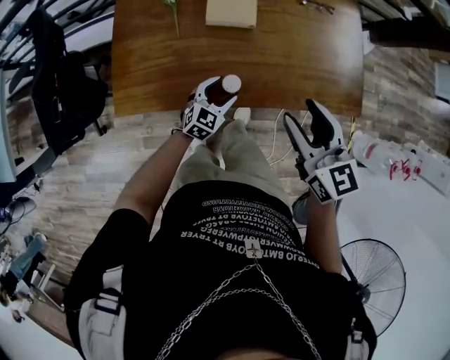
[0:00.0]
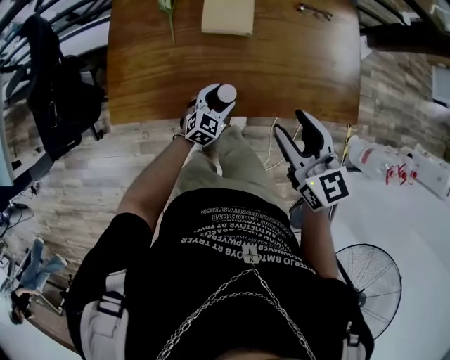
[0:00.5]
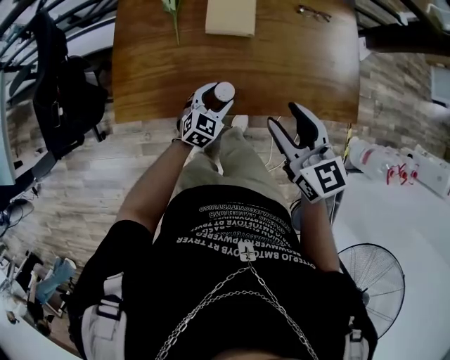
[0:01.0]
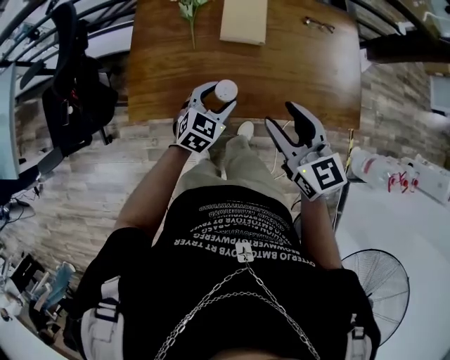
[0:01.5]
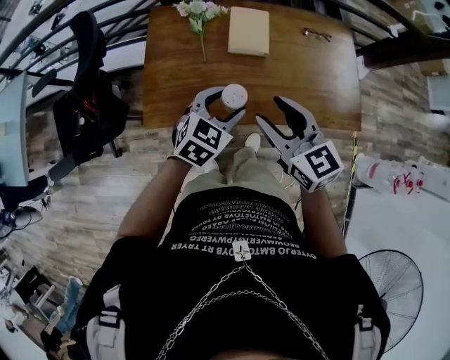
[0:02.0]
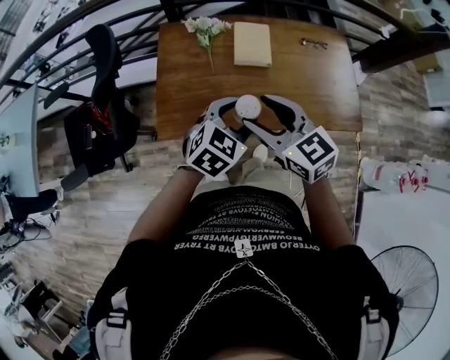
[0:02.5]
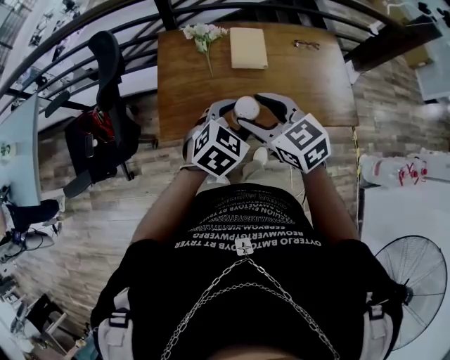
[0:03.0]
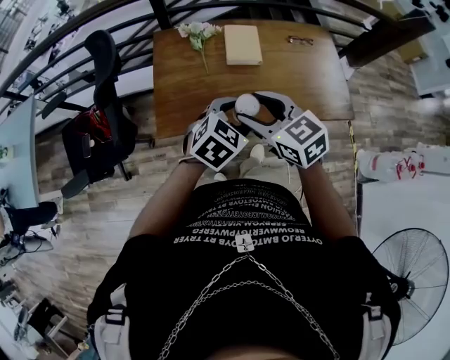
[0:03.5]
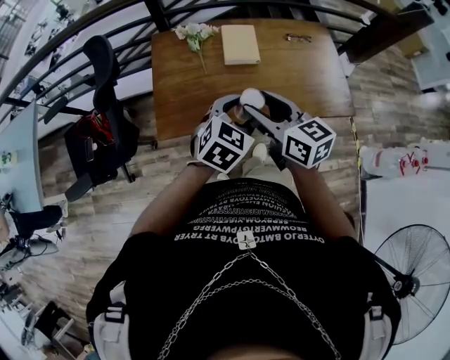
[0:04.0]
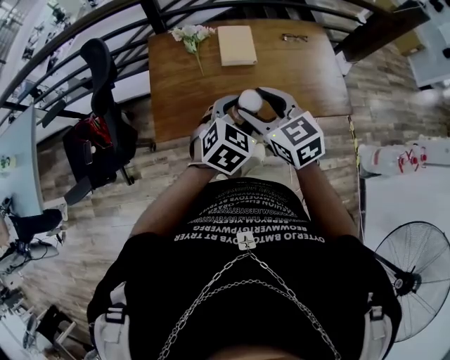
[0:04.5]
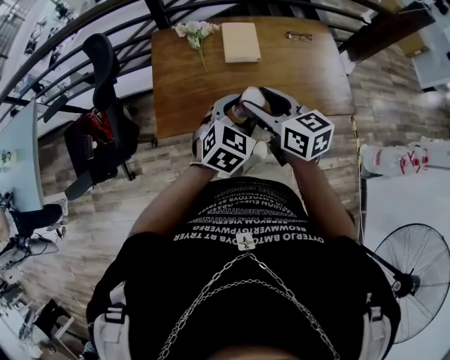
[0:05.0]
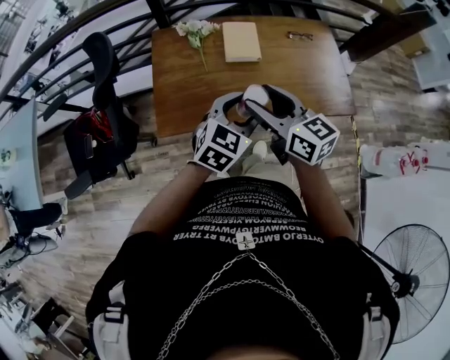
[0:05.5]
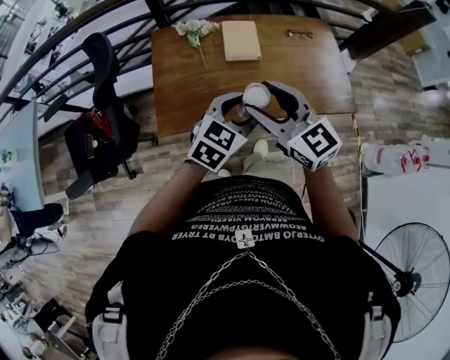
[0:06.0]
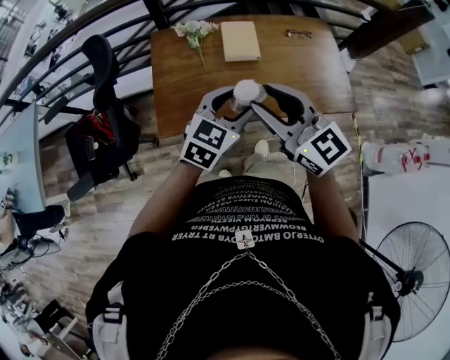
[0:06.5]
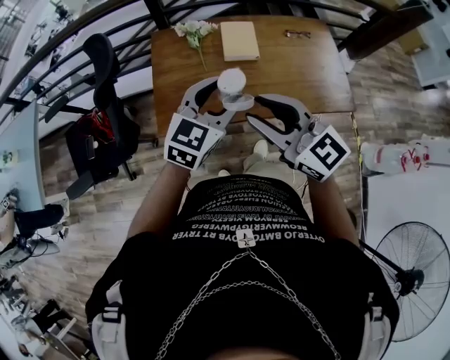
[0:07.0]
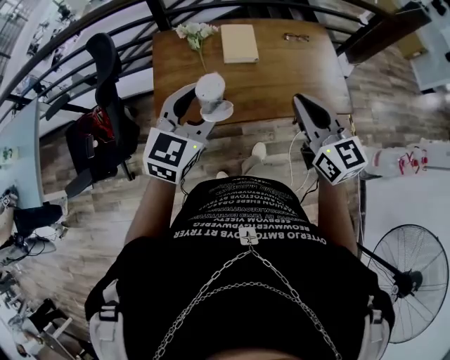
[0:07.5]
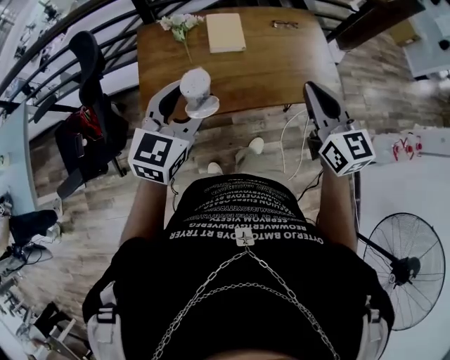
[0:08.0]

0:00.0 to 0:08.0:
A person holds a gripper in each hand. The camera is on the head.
0:00.0 to 0:02.0: The left gripper shifts roughly 20 cm upward. Meanwhile the right gripper goes roughly 15 cm to the left.
0:02.0 to 0:04.0: The left gripper moves upward and backward, roughly 10 cm. The right gripper changes place by some 5 cm.
0:04.0 to 0:06.0: The right gripper changes its angle by some 30 degrees.
0:06.0 to 0:08.0: The right gripper heads to the right, covering roughly 15 cm, rotates about 20 degrees, and closes; the left gripper shifts some 10 cm to the left and upward.

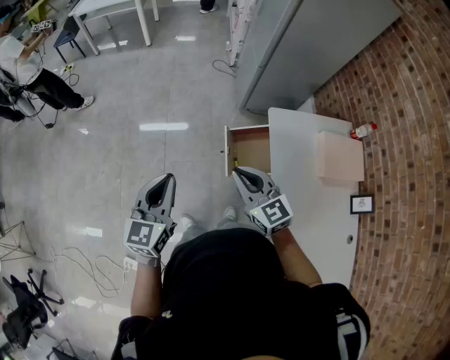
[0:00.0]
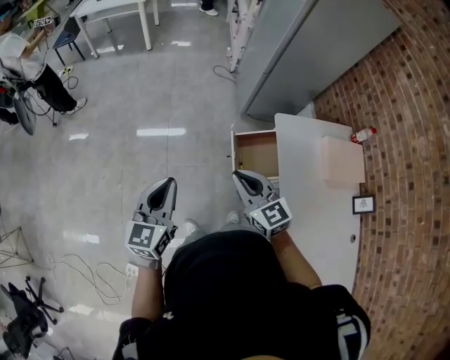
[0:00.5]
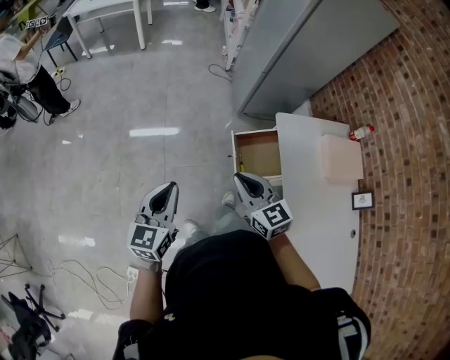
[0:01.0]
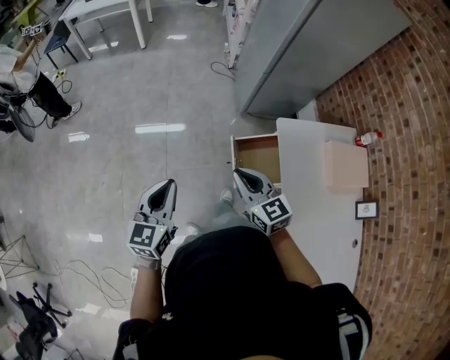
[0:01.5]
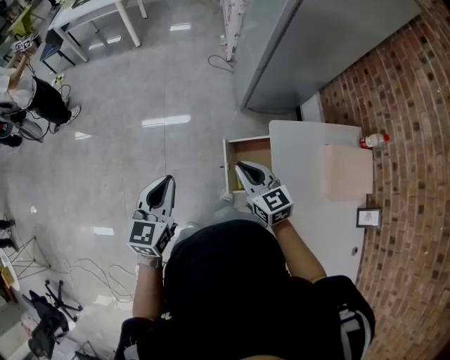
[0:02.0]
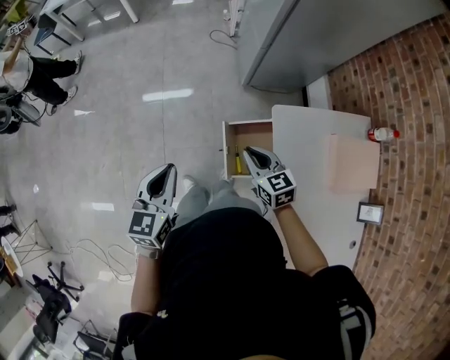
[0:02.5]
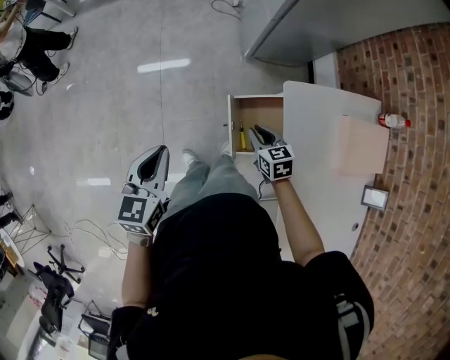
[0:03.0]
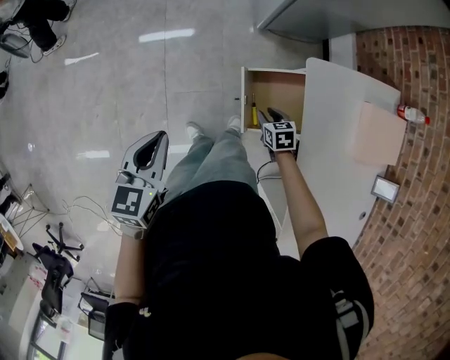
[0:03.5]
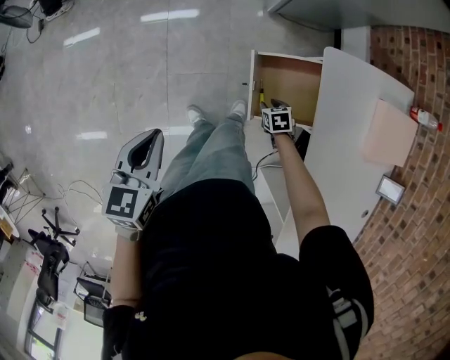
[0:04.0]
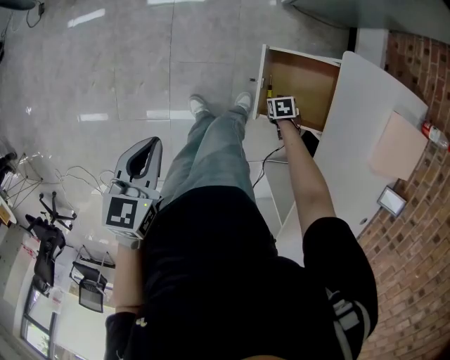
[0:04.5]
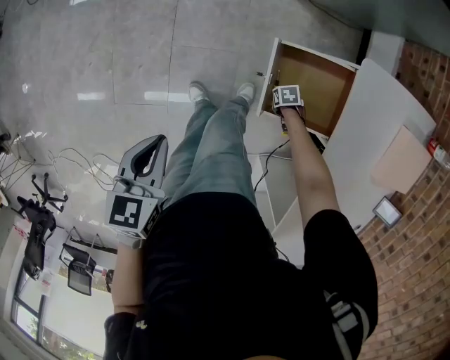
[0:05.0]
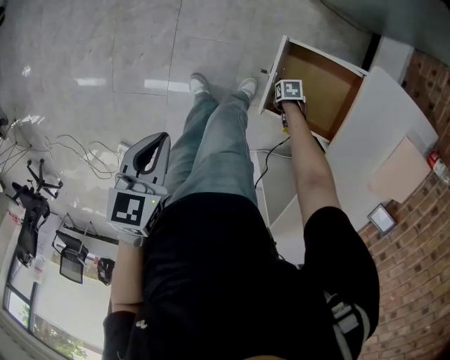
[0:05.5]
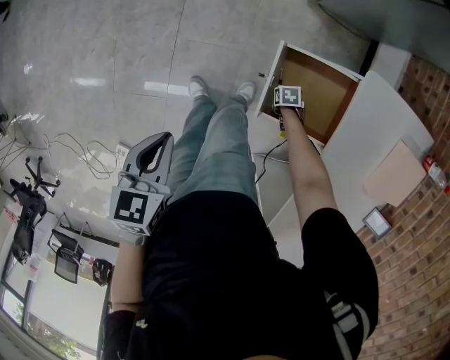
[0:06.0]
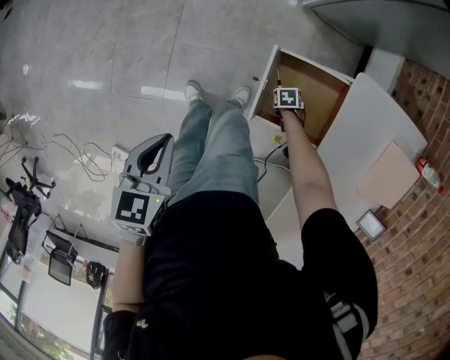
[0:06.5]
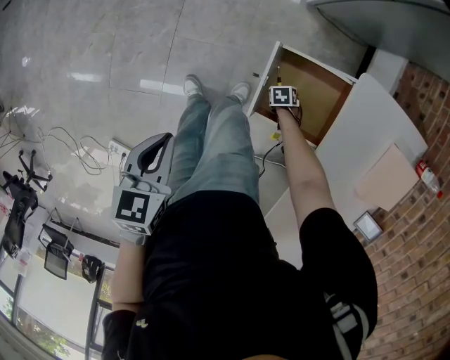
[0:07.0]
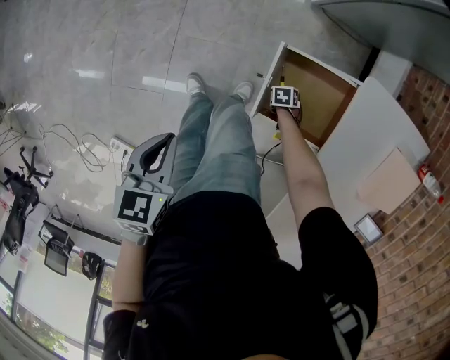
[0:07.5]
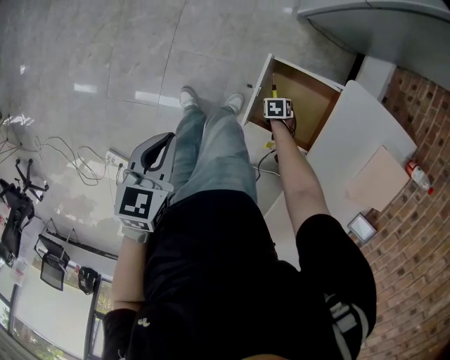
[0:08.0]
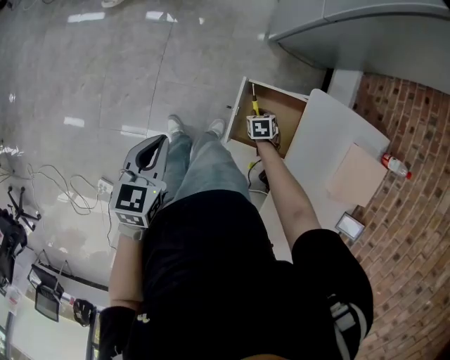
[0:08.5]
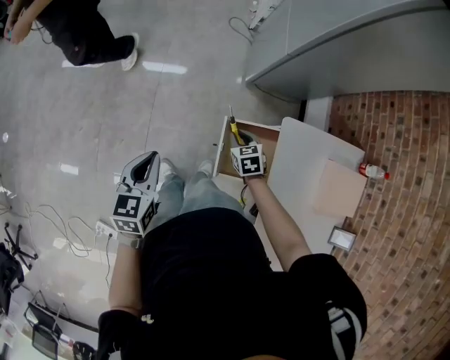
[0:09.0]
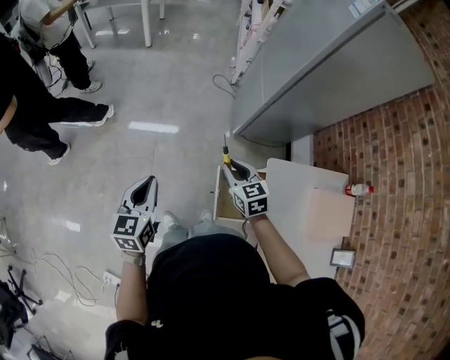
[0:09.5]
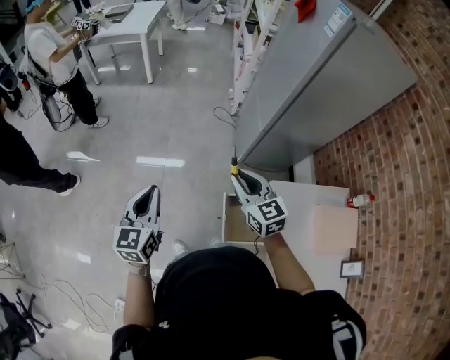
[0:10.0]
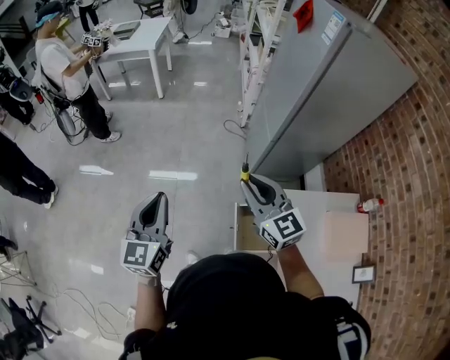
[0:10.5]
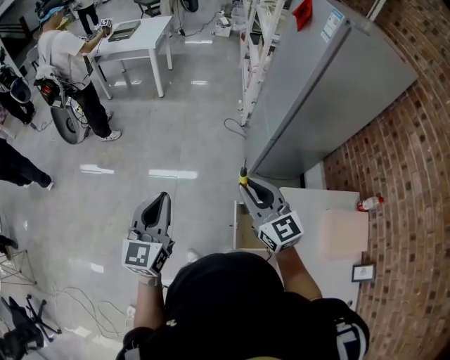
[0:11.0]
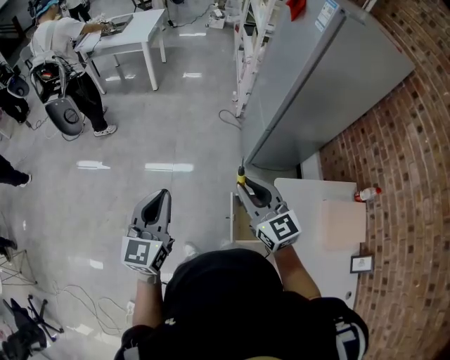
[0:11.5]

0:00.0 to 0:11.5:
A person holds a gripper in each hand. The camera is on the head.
0:00.0 to 0:02.0: The left gripper is displaced forward by some 15 cm. The right gripper goes about 20 cm forward and downward.
0:02.0 to 0:04.0: The left gripper goes some 15 cm downward and to the left, and swivels some 20 degrees, while the right gripper goes some 40 cm downward, tilts its fingers some 50 degrees downward, and opens its fingers.
0:04.0 to 0:06.0: The left gripper travels downward by roughly 10 cm, while the right gripper moves downward, about 15 cm, and turns by roughly 20 degrees.
0:06.0 to 0:07.5: There are only small adjustments of the grippers.
0:07.5 to 0:09.5: The left gripper goes approximately 20 cm upward, and tilts its fingers roughly 30 degrees upward. The right gripper travels upward by about 60 cm, and points its fingers approximately 50 degrees further upward.
0:09.5 to 0:11.5: The grippers both shift upward by about 20 cm. The left gripper turns by about 20 degrees. Meanwhile the right gripper rotates about 30 degrees.

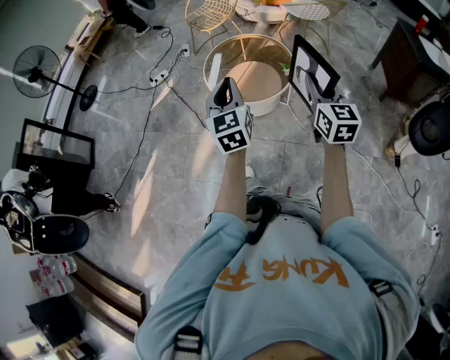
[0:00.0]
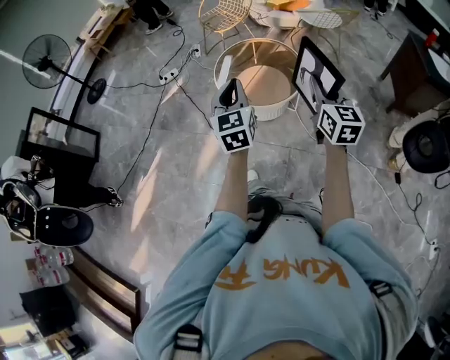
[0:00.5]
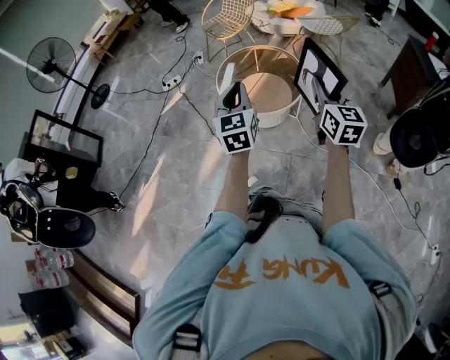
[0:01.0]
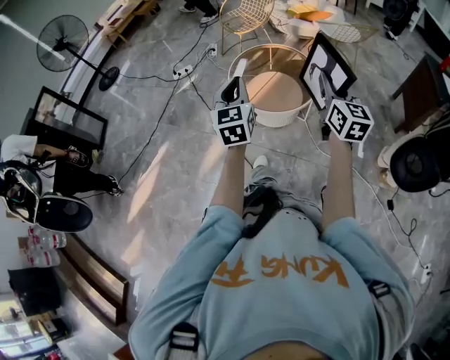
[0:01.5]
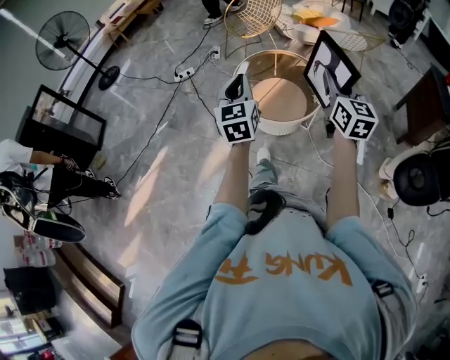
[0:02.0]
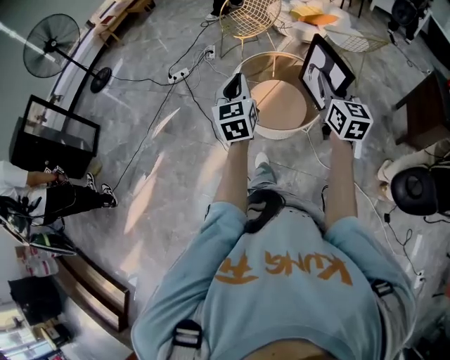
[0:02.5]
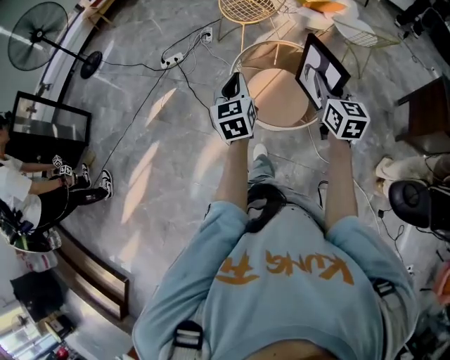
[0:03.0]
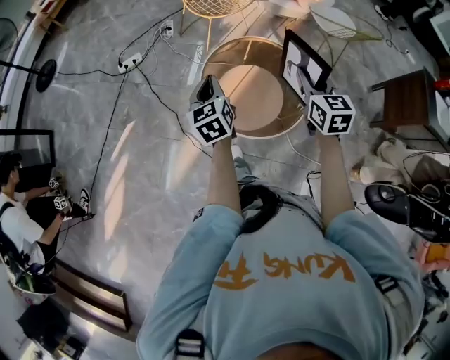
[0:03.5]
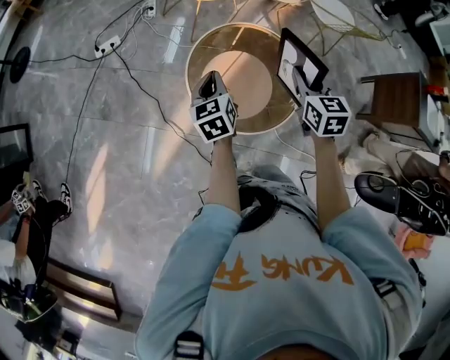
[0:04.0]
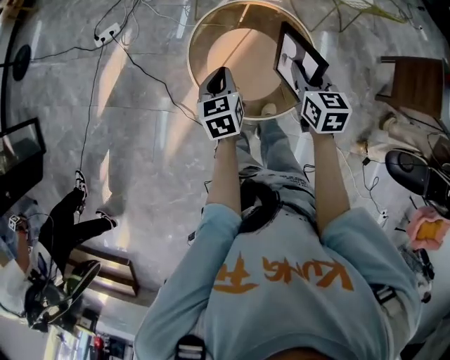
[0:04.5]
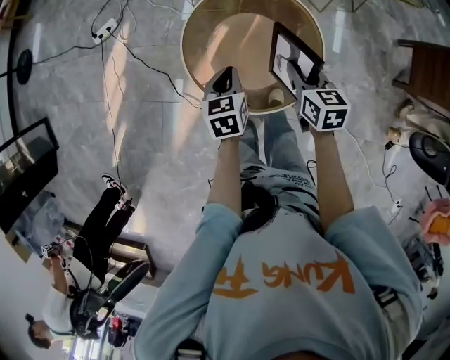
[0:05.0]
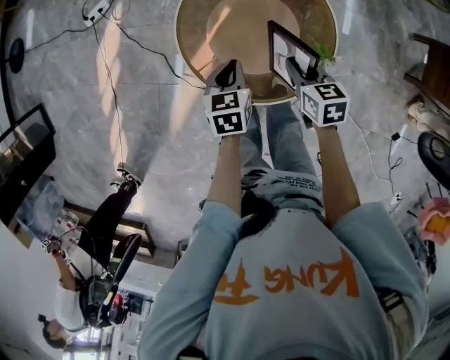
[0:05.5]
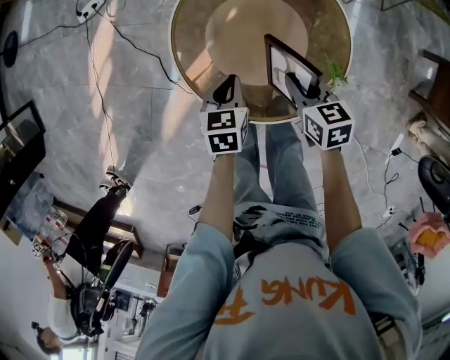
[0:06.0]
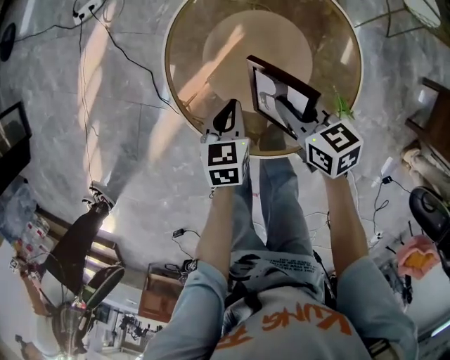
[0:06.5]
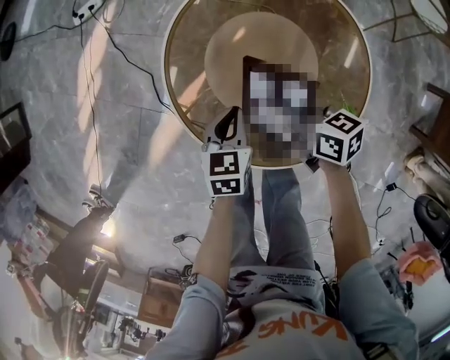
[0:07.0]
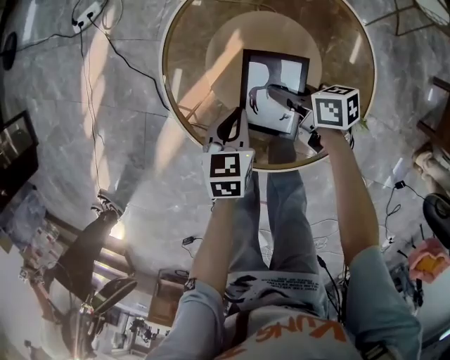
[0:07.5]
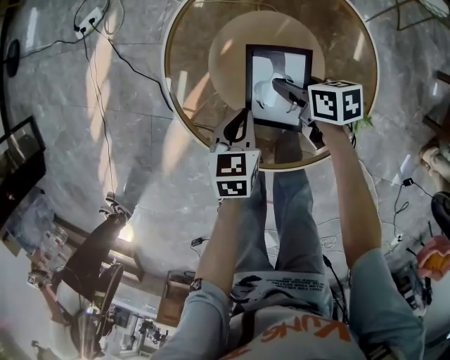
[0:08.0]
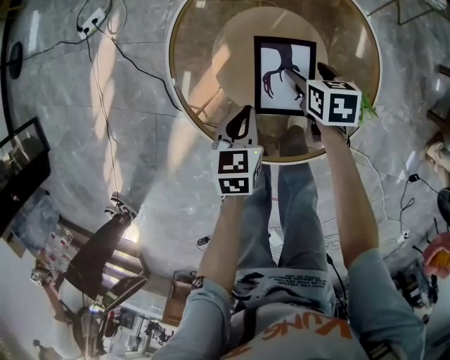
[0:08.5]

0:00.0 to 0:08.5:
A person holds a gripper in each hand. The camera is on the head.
0:00.0 to 0:02.0: The left gripper travels forward and to the left by approximately 10 cm, while the right gripper travels forward by roughly 10 cm.
0:02.0 to 0:04.0: The grippers both shift forward and downward by roughly 40 cm. The right gripper angles its fingers downward, by some 30 degrees; the left gripper swivels approximately 30 degrees.
0:04.0 to 0:06.5: The two grippers go approximately 35 cm downward. The right gripper changes its angle by approximately 40 degrees, while the left gripper changes its angle by about 30 degrees.
0:06.5 to 0:08.5: The right gripper shifts some 15 cm downward and to the right, changes its angle by some 30 degrees, and opens its fingers.
